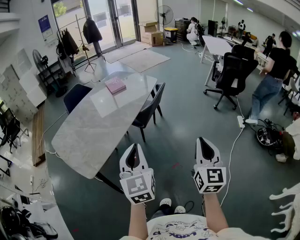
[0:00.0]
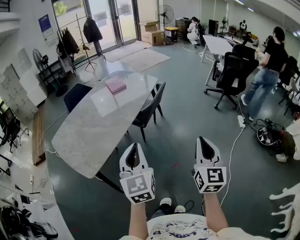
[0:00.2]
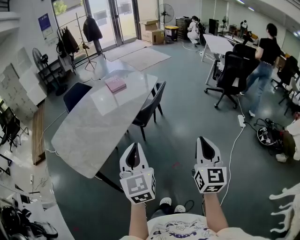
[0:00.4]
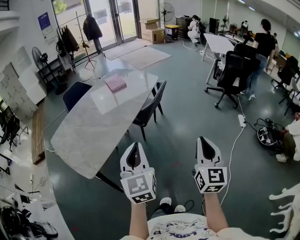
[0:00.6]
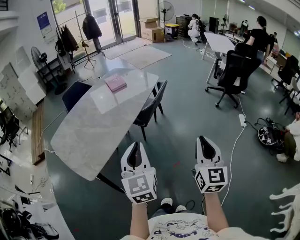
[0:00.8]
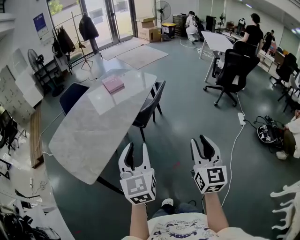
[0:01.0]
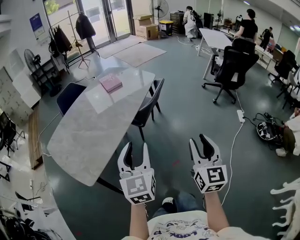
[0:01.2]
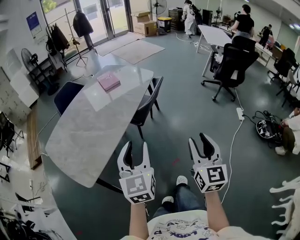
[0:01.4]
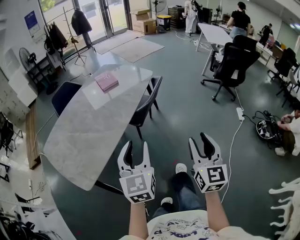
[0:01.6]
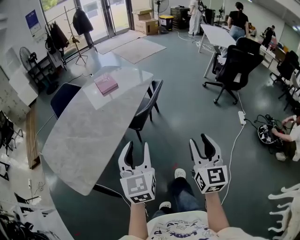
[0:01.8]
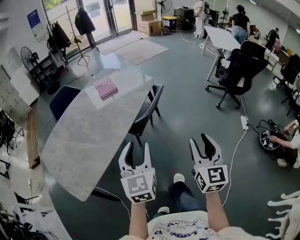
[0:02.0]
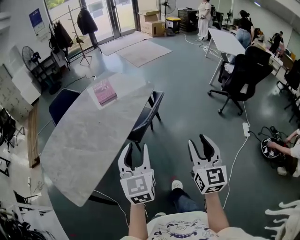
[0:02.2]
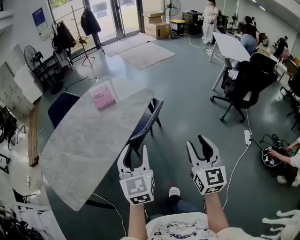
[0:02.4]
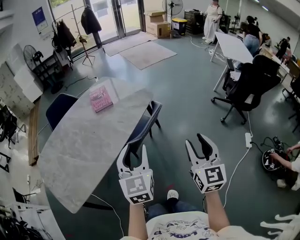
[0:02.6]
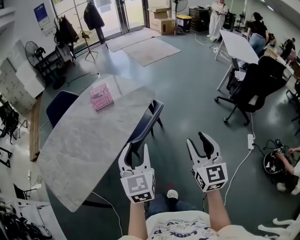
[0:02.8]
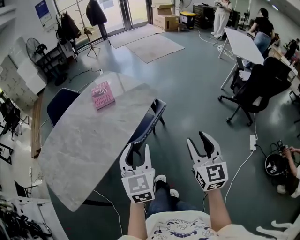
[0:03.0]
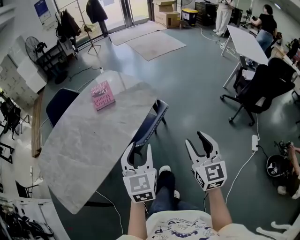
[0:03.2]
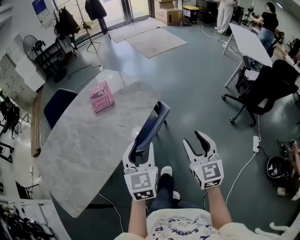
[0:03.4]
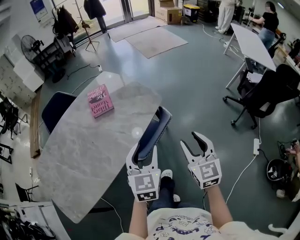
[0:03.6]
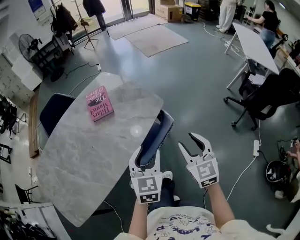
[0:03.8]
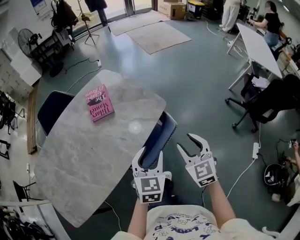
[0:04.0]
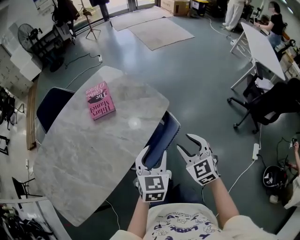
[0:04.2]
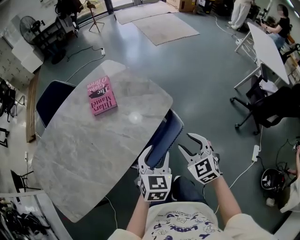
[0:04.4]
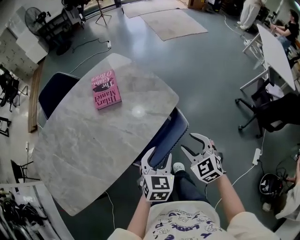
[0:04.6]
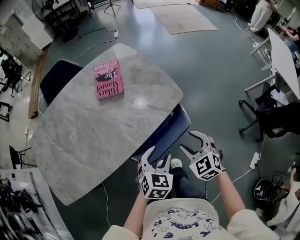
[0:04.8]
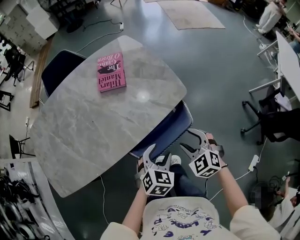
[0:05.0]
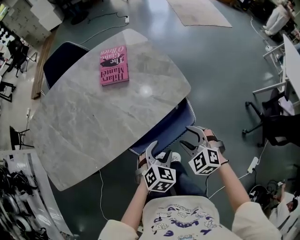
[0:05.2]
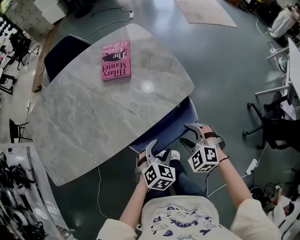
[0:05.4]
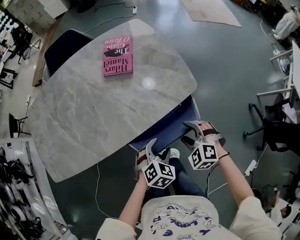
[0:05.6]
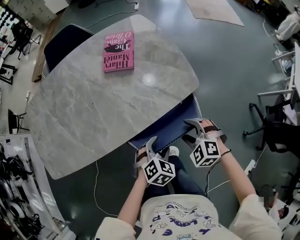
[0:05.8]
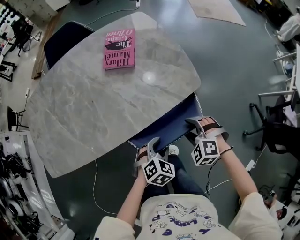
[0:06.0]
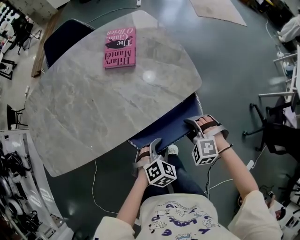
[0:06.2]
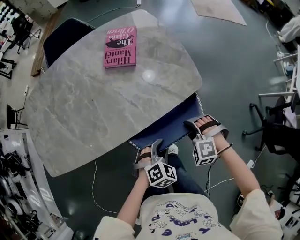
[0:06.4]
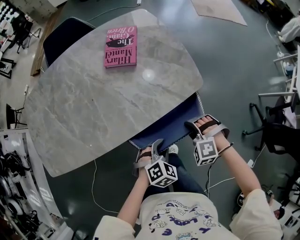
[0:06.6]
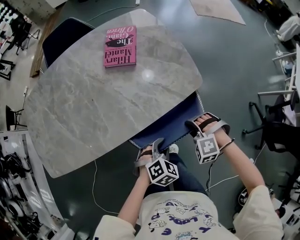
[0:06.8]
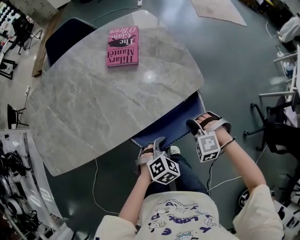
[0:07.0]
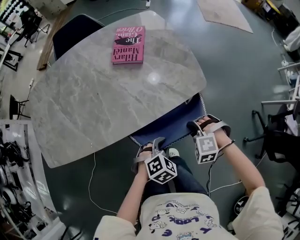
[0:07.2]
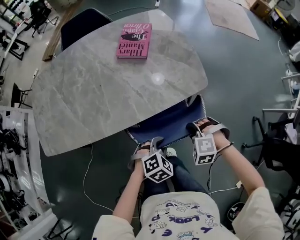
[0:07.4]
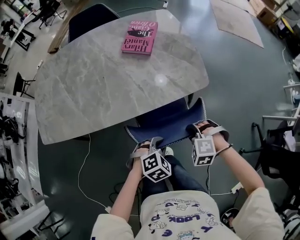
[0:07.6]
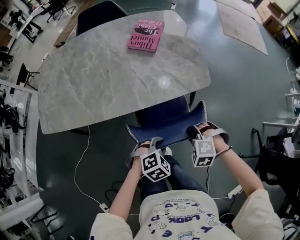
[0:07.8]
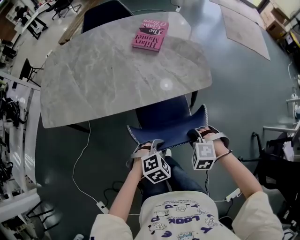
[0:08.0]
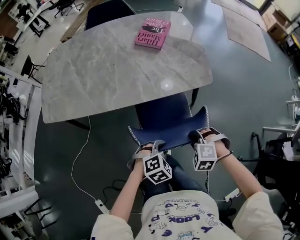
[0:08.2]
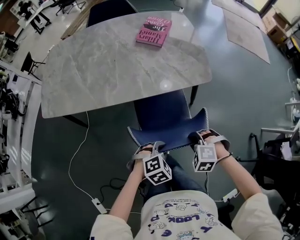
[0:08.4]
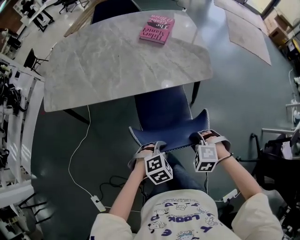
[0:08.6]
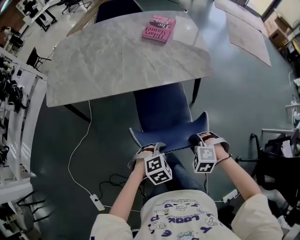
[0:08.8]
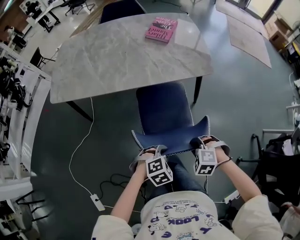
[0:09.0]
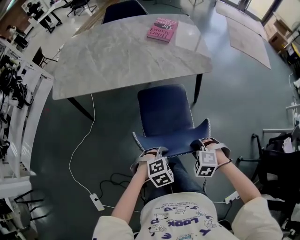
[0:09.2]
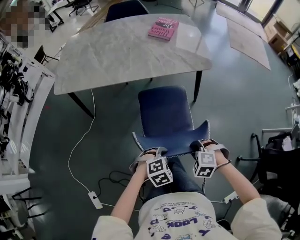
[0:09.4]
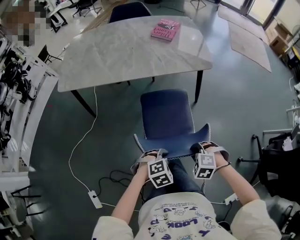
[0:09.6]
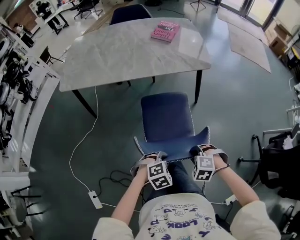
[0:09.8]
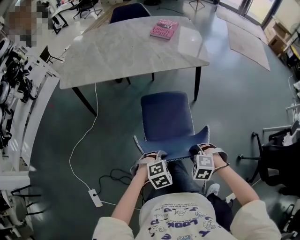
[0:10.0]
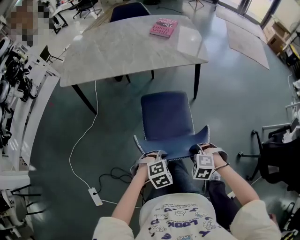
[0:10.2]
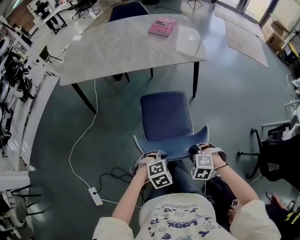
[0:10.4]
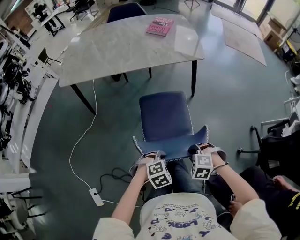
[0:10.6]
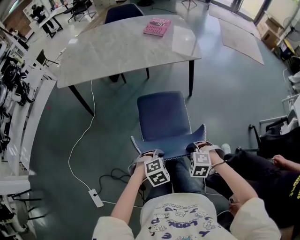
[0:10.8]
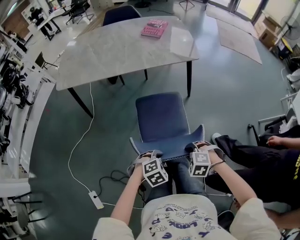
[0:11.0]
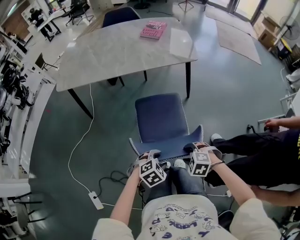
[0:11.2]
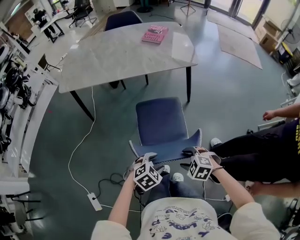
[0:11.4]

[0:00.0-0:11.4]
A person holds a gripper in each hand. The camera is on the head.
0.0 to 1.4 s: Both grippers travel together forward, roughly 10 cm. The right gripper opens its fingers. Meanwhile the left gripper opens up.
1.4 to 2.8 s: The left gripper moves forward and to the right, about 35 cm. The right gripper travels forward by approximately 35 cm.
2.8 to 4.2 s: Both grippers travel together forward and downward, approximately 30 cm. The right gripper turns by some 30 degrees.
4.2 to 5.6 s: The grippers both shift downward by some 15 cm. The right gripper changes its angle by approximately 50 degrees. Meanwhile the left gripper turns by some 30 degrees.
5.6 to 7.2 s: The left gripper closes. The right gripper turns by some 30 degrees, and closes.
7.2 to 8.6 s: The grippers both shift backward by about 20 cm.
8.6 to 10.0 s: The left gripper changes place by roughly 20 cm, while the right gripper changes place by approximately 25 cm.
10.0 to 11.4 s: The right gripper changes place by some 5 cm, and opens up, while the left gripper ends up approximately 5 cm from where it was, and opens its fingers.

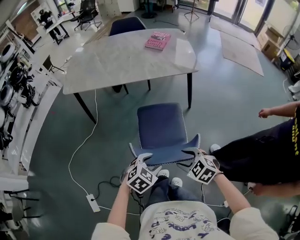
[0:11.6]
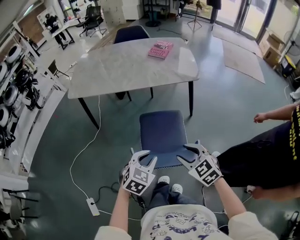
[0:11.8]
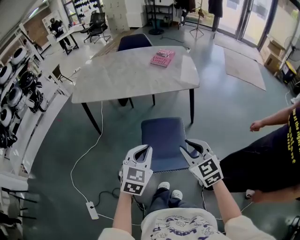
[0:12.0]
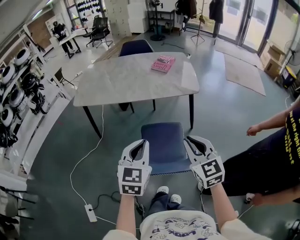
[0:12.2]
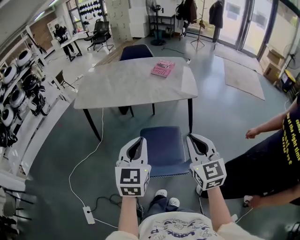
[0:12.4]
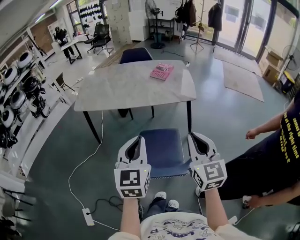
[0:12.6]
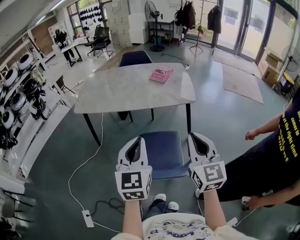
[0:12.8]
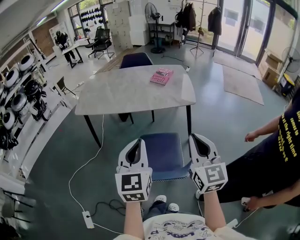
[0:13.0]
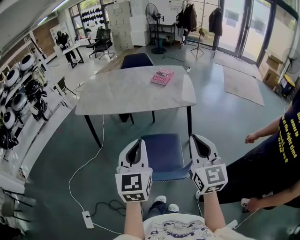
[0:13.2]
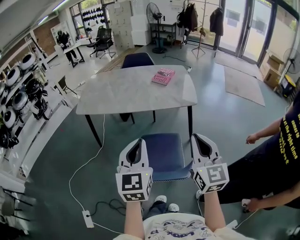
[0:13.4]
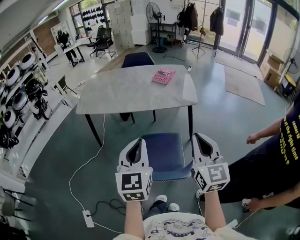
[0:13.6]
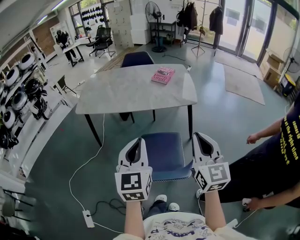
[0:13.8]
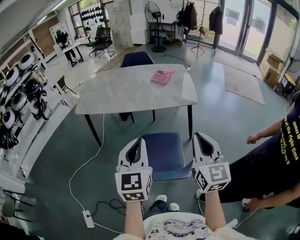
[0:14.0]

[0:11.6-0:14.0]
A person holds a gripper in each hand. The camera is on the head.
11.6 to 12.8 s: The two grippers go approximately 30 cm upward. The left gripper tilts its fingers about 50 degrees upward, and closes. Meanwhile the right gripper tips its fingers upward by some 50 degrees, and closes up.
12.8 to 14.0 s: The grippers stay close to where they were, moving slightly.

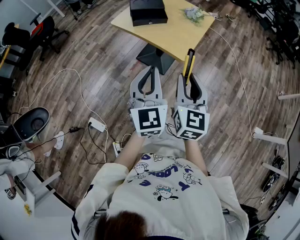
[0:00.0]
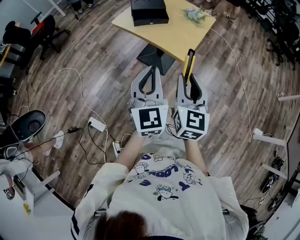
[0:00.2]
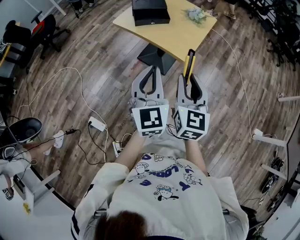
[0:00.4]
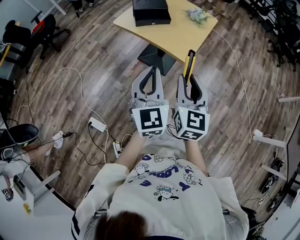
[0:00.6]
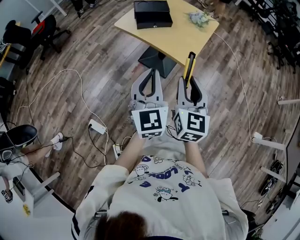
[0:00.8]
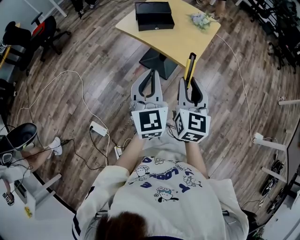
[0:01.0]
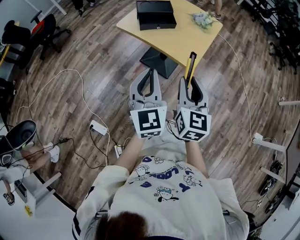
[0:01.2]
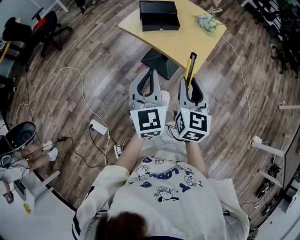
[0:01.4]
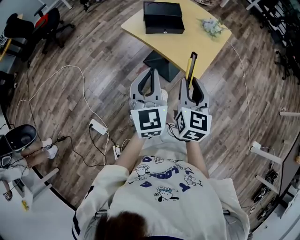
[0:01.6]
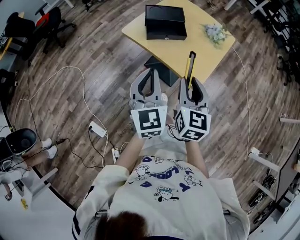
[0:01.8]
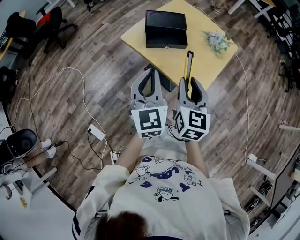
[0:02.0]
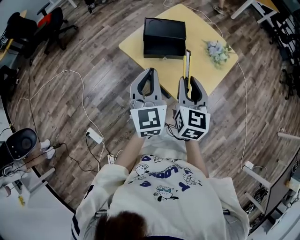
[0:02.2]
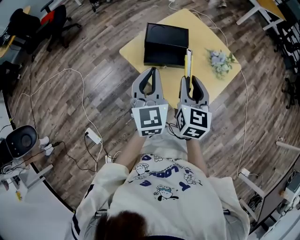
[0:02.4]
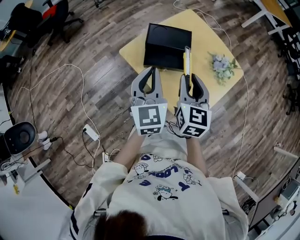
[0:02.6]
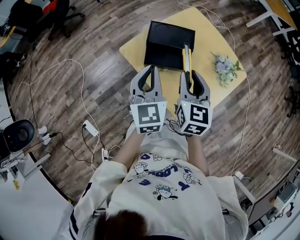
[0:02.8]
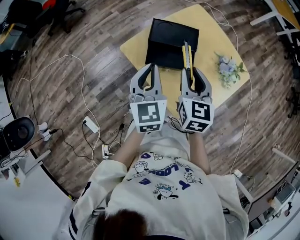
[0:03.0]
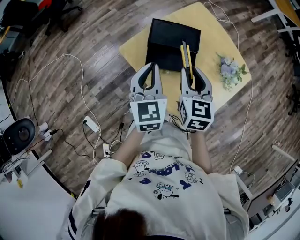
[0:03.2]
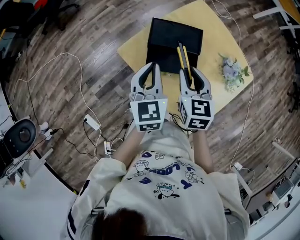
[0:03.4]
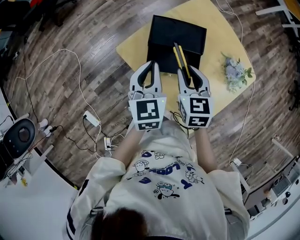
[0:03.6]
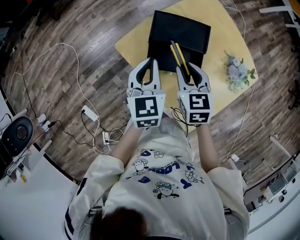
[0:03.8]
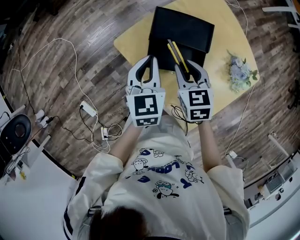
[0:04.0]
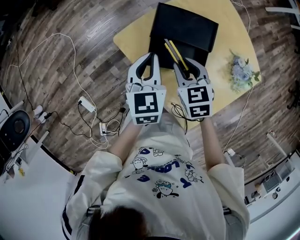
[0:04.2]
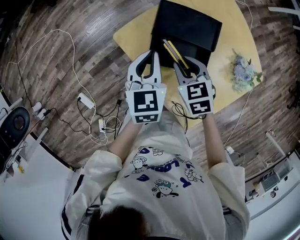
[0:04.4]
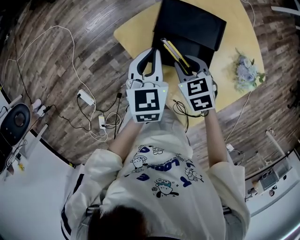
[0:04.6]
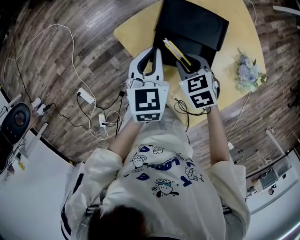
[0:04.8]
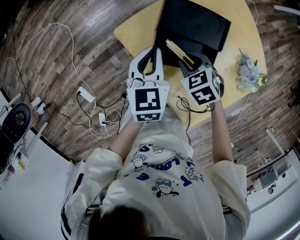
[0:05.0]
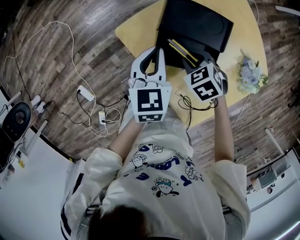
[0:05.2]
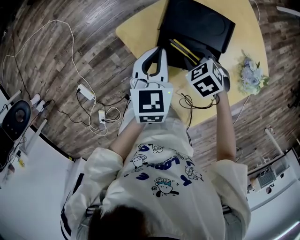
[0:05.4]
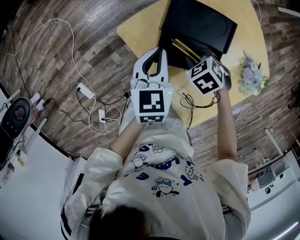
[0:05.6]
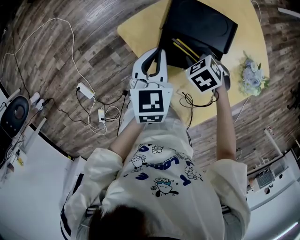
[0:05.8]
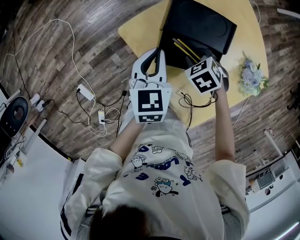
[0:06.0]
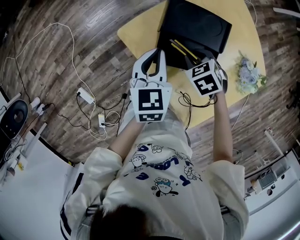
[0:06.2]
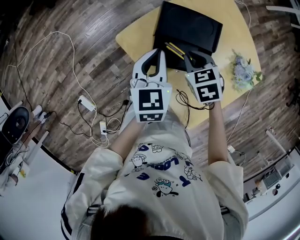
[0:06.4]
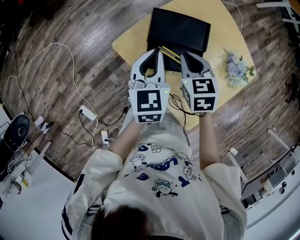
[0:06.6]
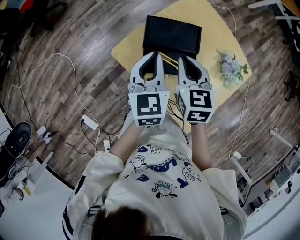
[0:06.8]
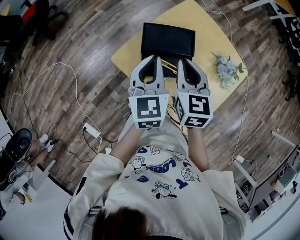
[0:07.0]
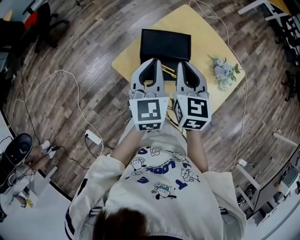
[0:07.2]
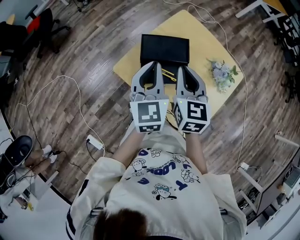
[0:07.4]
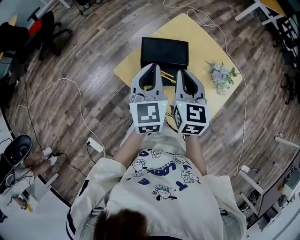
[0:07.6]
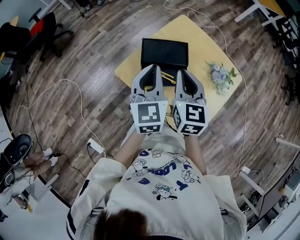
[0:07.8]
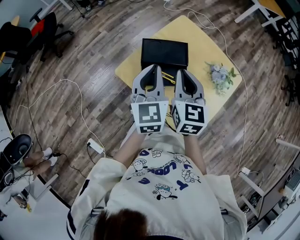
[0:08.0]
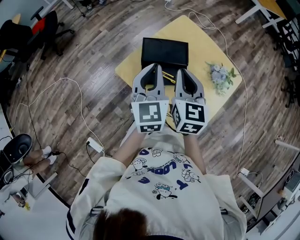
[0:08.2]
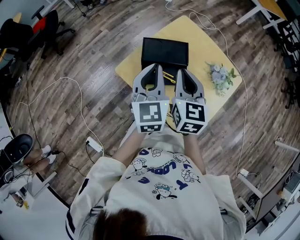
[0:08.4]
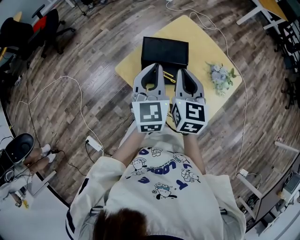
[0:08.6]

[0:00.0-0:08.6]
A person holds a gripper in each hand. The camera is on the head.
0.0 to 1.4 s: The right gripper is displaced forward by some 10 cm, while the left gripper goes some 10 cm forward and to the left.
1.4 to 2.8 s: The two grippers go about 35 cm forward.
2.8 to 4.4 s: The grippers both shift downward and forward by some 20 cm. The right gripper points its fingers roughly 30 degrees further downward.
4.4 to 5.8 s: The right gripper shifts about 10 cm downward, and rotates approximately 30 degrees.
5.8 to 7.2 s: The right gripper shifts some 25 cm upward, and tilts its fingers about 60 degrees upward, while the left gripper goes approximately 15 cm upward, and turns by roughly 20 degrees.
7.2 to 8.6 s: The grippers stay close to where they were, moving slightly.

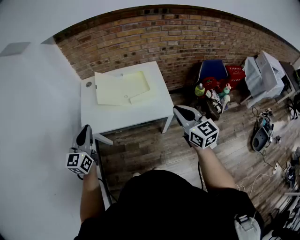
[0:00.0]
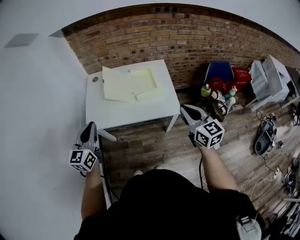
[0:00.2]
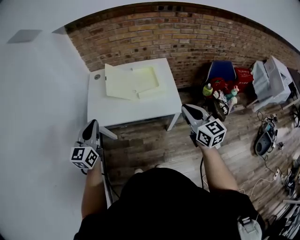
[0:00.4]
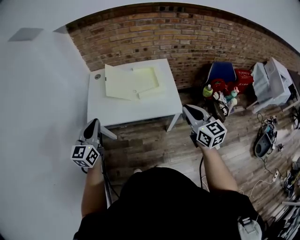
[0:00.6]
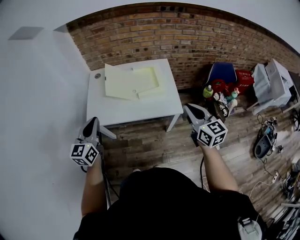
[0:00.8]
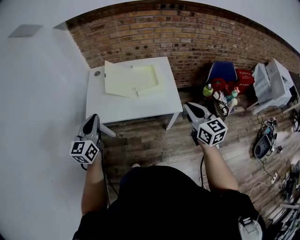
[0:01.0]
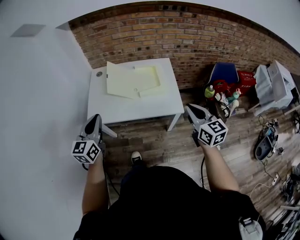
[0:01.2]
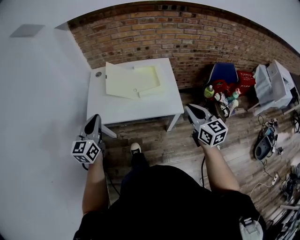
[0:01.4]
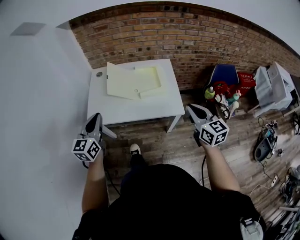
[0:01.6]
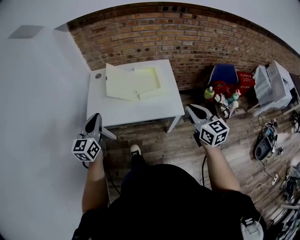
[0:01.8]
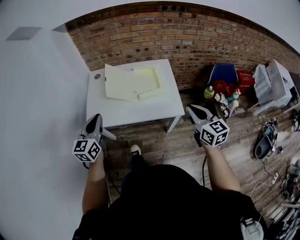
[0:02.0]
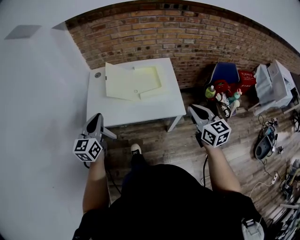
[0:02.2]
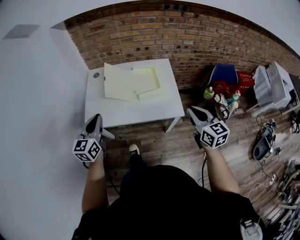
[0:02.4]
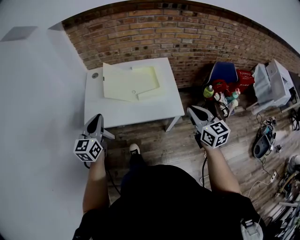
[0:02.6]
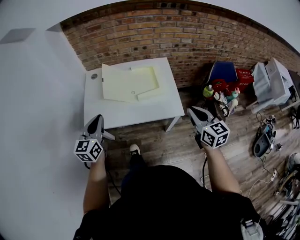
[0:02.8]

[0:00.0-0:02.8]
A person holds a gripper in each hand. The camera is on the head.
0.0 to 1.4 s: The grippers stay close to where they were, moving slightly.
1.4 to 2.8 s: The left gripper is displaced forward by roughly 5 cm.
